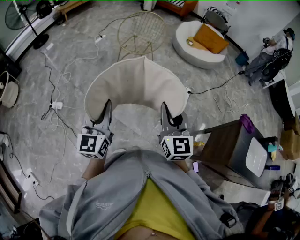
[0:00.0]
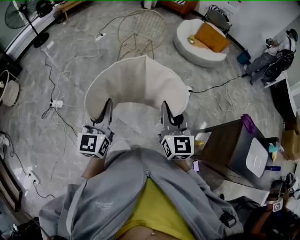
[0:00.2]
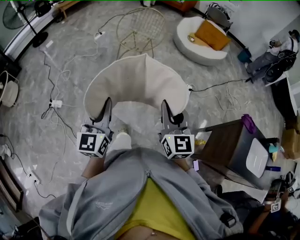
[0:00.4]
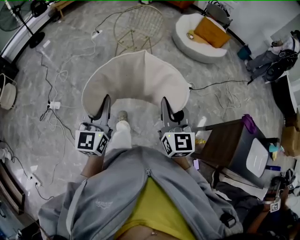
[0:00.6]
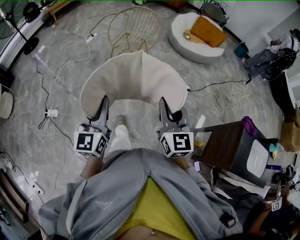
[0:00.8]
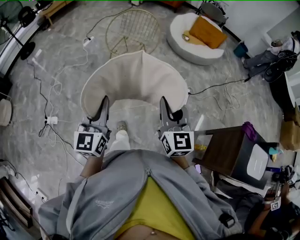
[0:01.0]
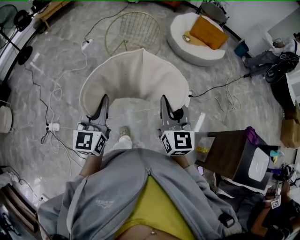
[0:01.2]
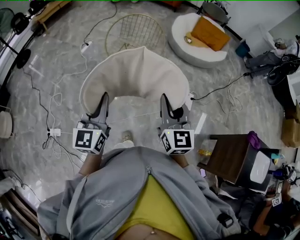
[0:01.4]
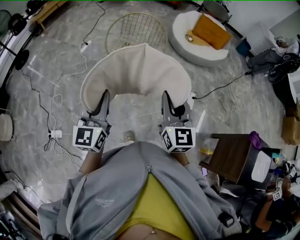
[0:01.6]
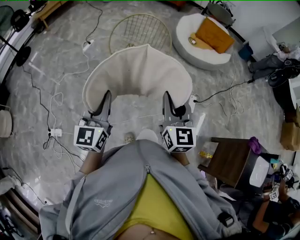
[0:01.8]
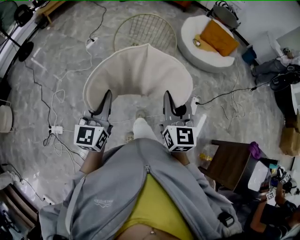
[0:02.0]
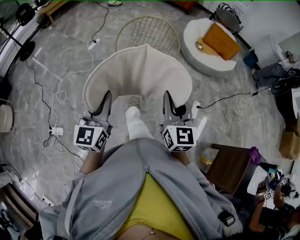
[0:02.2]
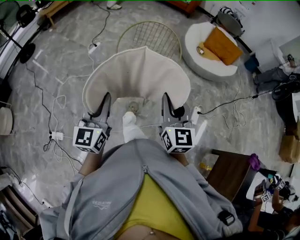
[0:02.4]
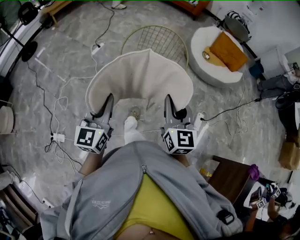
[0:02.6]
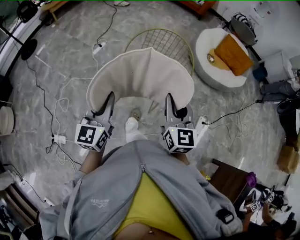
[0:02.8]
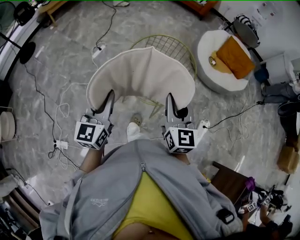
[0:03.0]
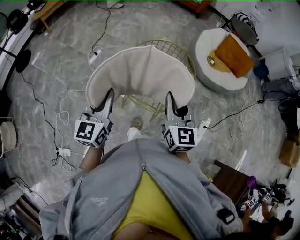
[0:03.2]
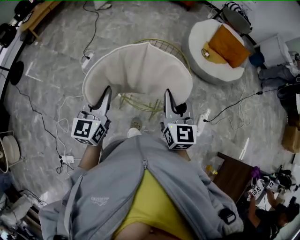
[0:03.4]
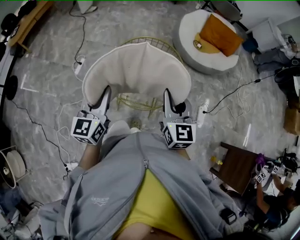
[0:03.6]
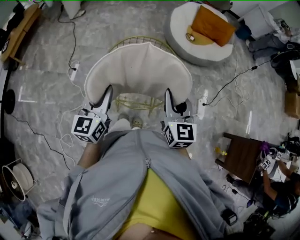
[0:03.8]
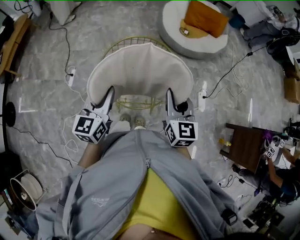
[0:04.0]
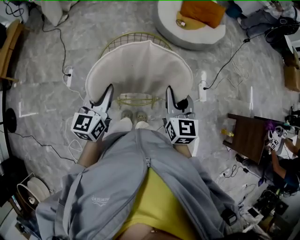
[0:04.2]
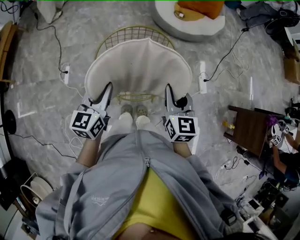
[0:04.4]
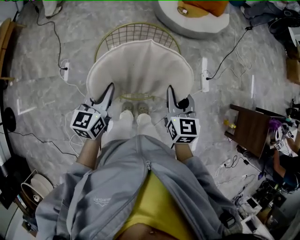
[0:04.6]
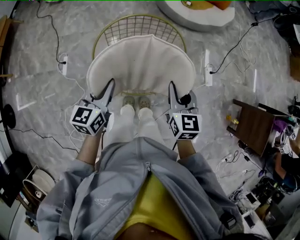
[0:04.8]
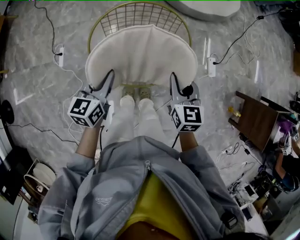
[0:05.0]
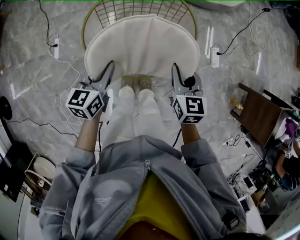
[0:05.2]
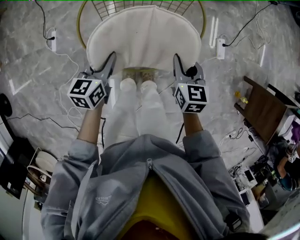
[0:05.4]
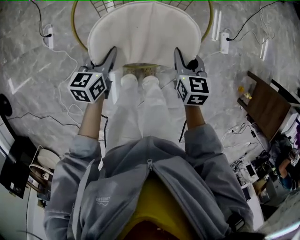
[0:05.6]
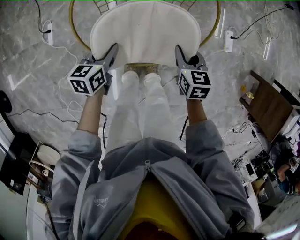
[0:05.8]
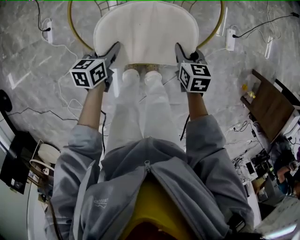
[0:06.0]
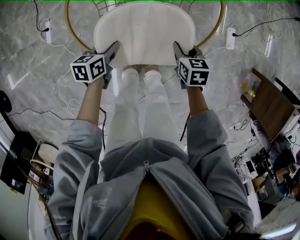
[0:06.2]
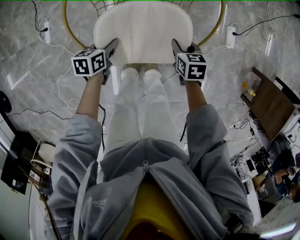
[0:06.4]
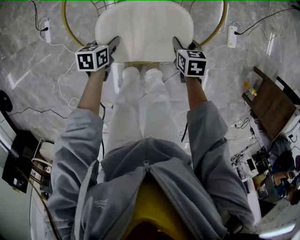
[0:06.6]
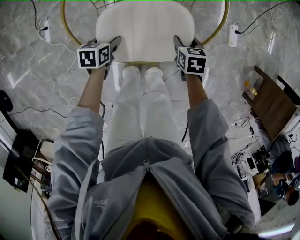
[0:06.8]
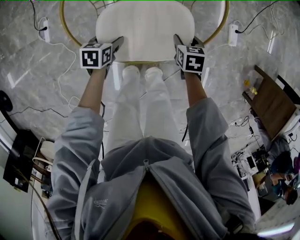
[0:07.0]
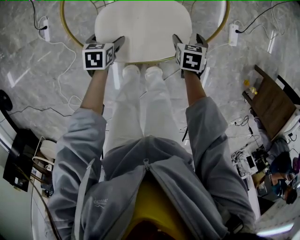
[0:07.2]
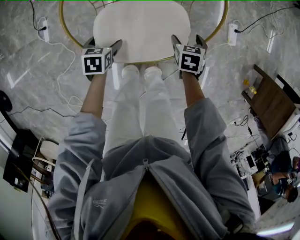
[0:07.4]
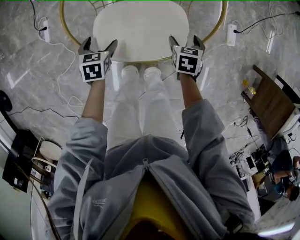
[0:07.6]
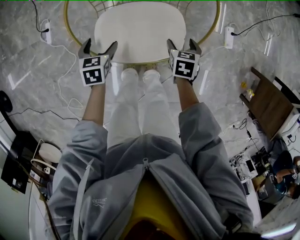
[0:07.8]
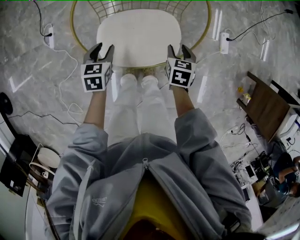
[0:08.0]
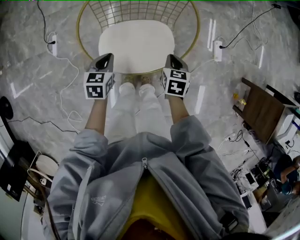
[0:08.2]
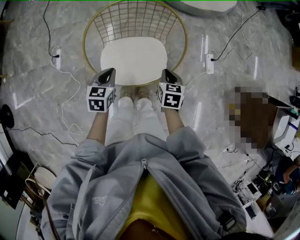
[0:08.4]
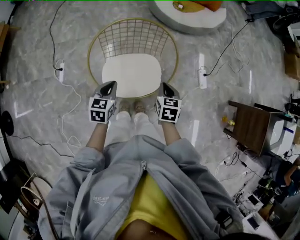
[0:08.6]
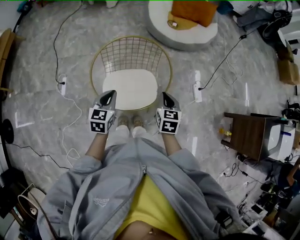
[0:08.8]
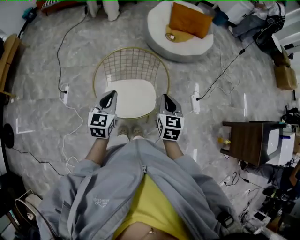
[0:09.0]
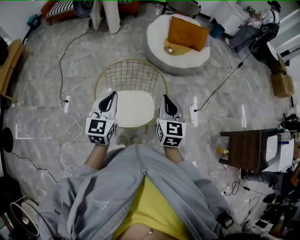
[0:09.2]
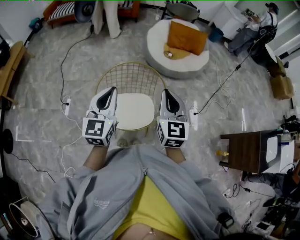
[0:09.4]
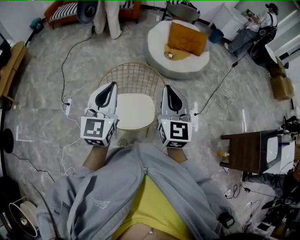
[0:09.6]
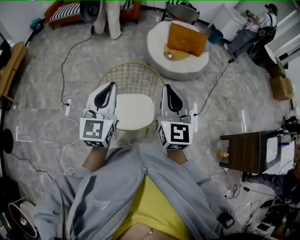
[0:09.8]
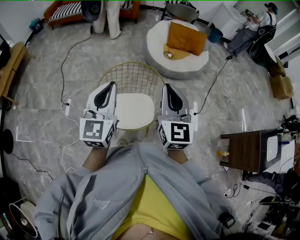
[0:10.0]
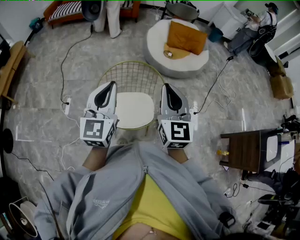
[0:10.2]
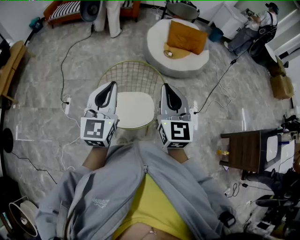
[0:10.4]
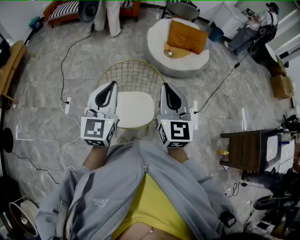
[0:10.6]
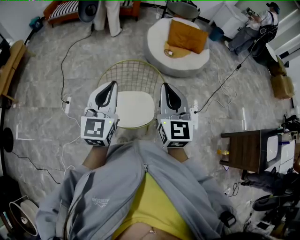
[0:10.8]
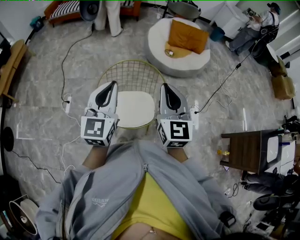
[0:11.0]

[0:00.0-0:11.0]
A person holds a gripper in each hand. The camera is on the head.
0:00.0 to 0:01.6: The two grippers travel together, forward, approximately 40 cm.
0:01.6 to 0:03.2: The two grippers travel together, forward, about 40 cm.
0:03.2 to 0:04.8: The left gripper changes place by roughly 25 cm, and turns by roughly 40 degrees; the right gripper goes about 15 cm downward, and changes its angle by about 30 degrees.
0:04.8 to 0:06.2: Both grippers move downward, some 35 cm. The right gripper changes its angle by approximately 30 degrees. Meanwhile the left gripper changes its angle by roughly 30 degrees.
0:06.2 to 0:07.8: The right gripper opens; the left gripper changes its angle by about 30 degrees, and opens.
0:07.8 to 0:09.4: Both grippers move upward, approximately 50 cm. The left gripper tips its fingers upward by roughly 50 degrees, and closes its fingers; the right gripper tips its fingers upward by some 60 degrees, and closes.
0:09.4 to 0:11.0: The grippers move only a little.

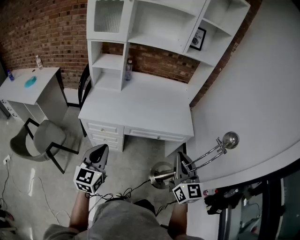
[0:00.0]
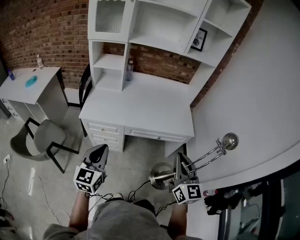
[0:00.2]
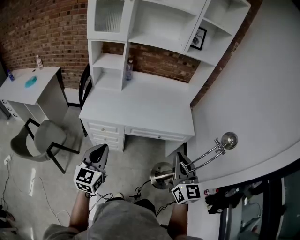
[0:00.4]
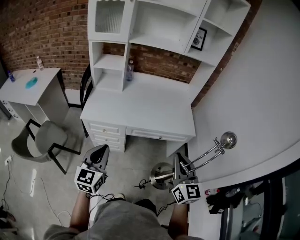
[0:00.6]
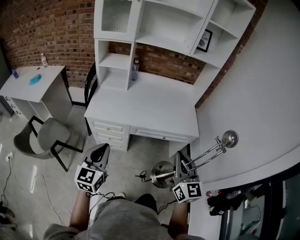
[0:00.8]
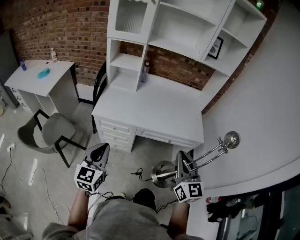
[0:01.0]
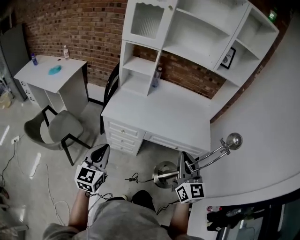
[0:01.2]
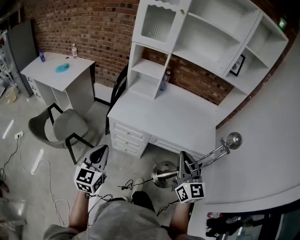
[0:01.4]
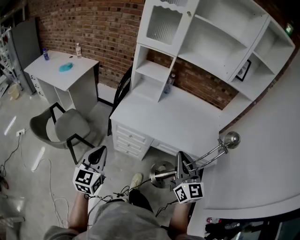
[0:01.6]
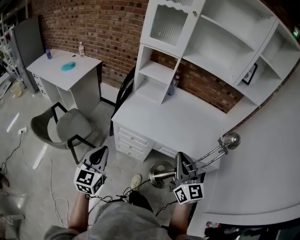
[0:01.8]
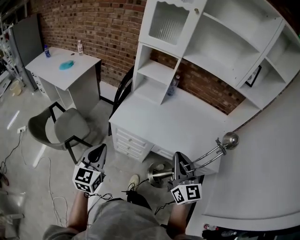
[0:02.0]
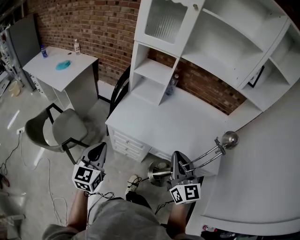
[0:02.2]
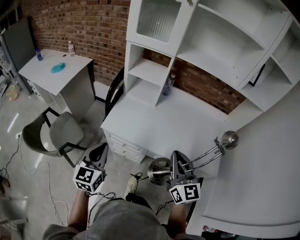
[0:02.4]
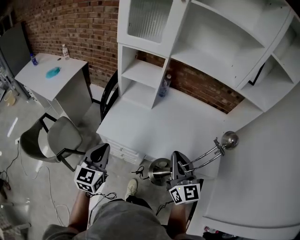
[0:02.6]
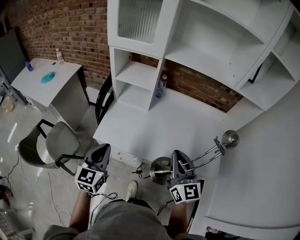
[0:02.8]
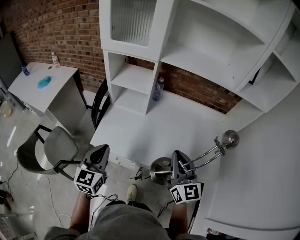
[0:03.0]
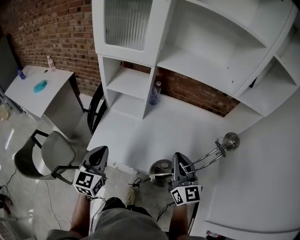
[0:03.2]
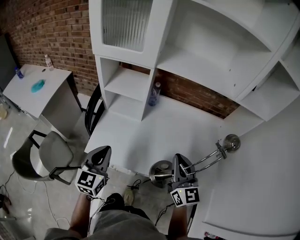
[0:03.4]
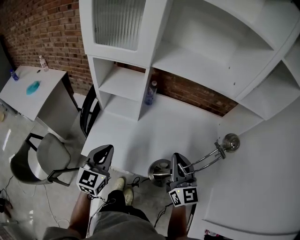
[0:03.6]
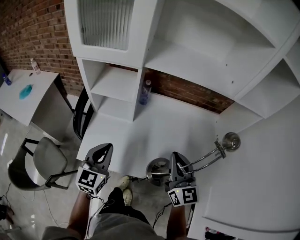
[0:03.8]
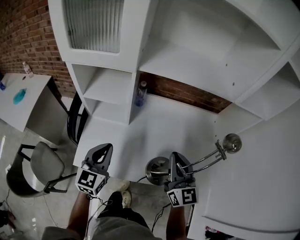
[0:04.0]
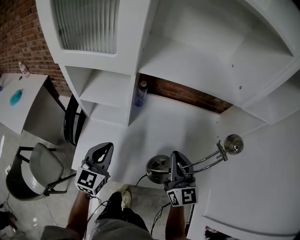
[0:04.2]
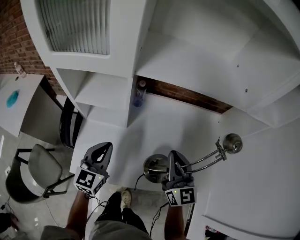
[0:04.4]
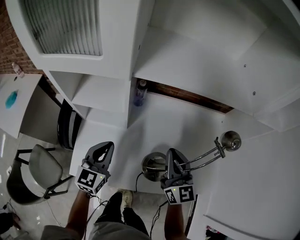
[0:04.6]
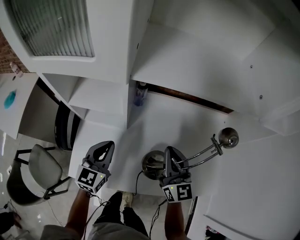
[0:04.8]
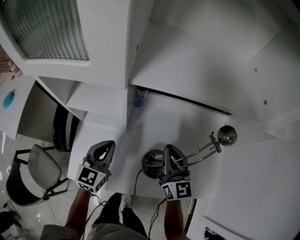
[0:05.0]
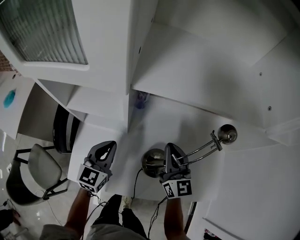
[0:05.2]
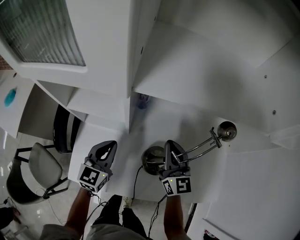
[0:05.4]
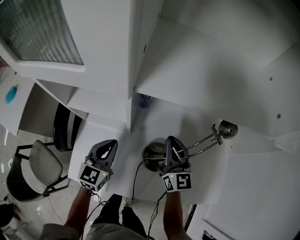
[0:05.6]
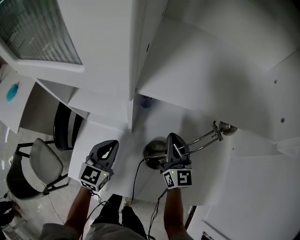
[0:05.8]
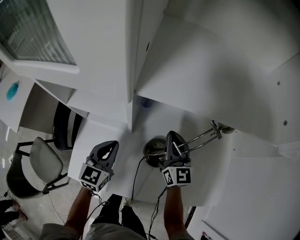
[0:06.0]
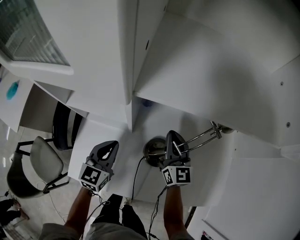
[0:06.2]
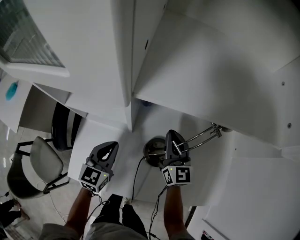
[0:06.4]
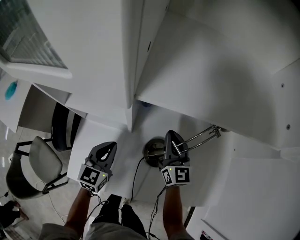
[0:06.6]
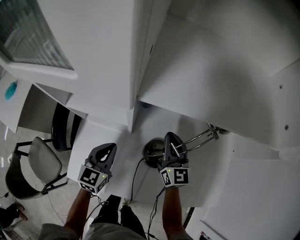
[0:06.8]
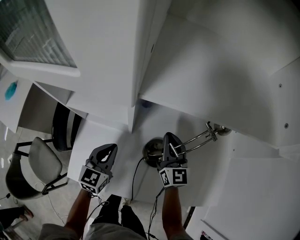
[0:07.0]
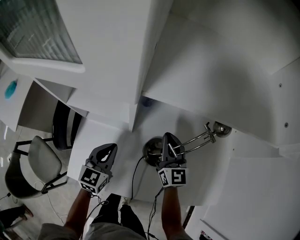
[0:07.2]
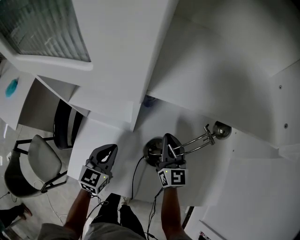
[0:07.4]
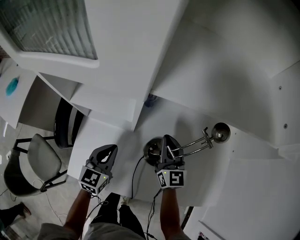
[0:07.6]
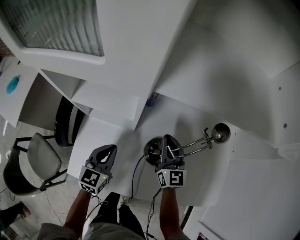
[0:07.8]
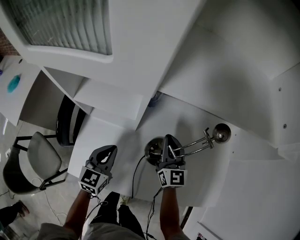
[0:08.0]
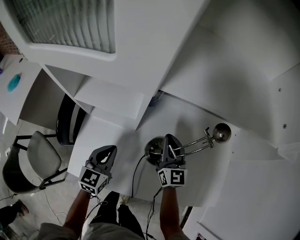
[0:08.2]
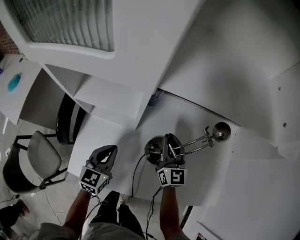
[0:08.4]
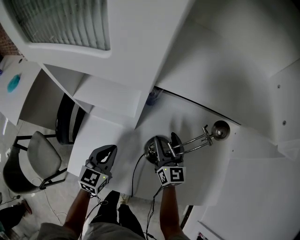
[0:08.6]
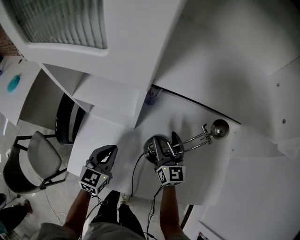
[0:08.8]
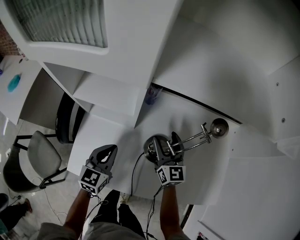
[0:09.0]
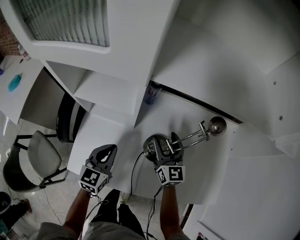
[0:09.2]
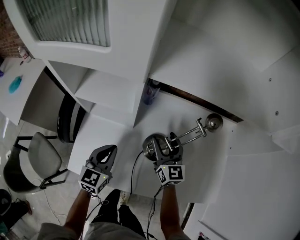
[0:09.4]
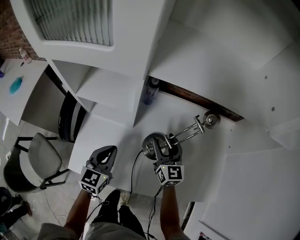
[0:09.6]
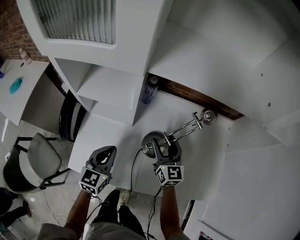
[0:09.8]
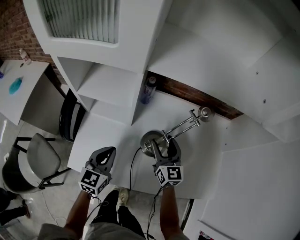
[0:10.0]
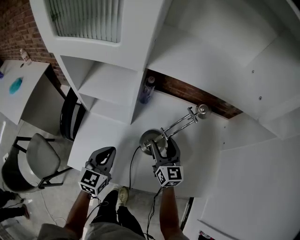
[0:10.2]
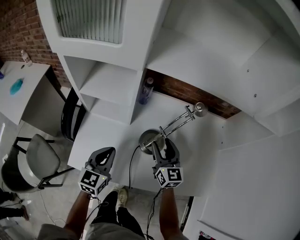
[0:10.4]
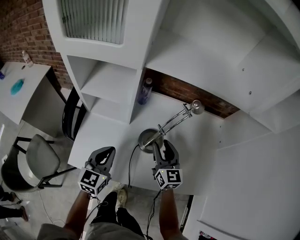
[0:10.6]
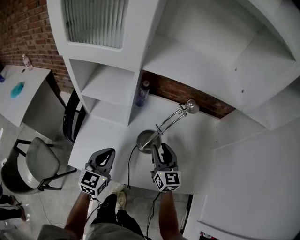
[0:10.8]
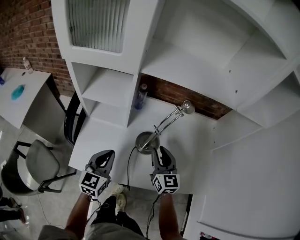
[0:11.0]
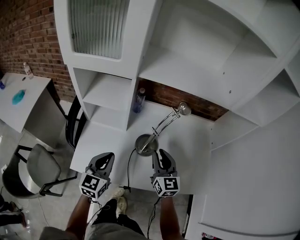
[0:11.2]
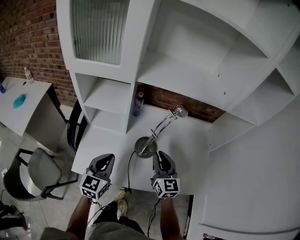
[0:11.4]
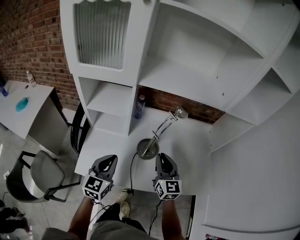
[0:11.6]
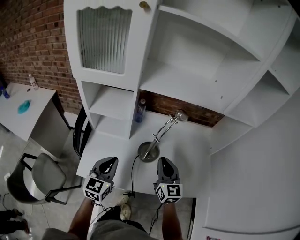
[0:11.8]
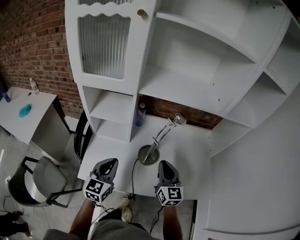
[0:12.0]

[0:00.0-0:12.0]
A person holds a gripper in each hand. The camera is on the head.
0:00.0 to 0:01.6: The right gripper travels to the left and forward by about 20 cm; the left gripper moves to the left, approximately 15 cm.
0:01.6 to 0:03.0: The right gripper is displaced forward by about 25 cm; the left gripper shifts roughly 30 cm forward and to the right.
0:03.0 to 0:04.4: The grippers both shift forward by roughly 20 cm.
0:04.4 to 0:06.0: The right gripper moves forward and downward, roughly 20 cm. Meanwhile the left gripper heads downward and forward, covering approximately 10 cm.
0:06.0 to 0:07.6: The grippers move only a little.
0:07.6 to 0:09.0: The right gripper opens its fingers.
0:09.0 to 0:10.4: The grippers both shift backward by some 5 cm.
0:10.4 to 0:12.0: The right gripper goes about 15 cm backward and upward, and closes its fingers. The left gripper goes roughly 10 cm upward and backward.

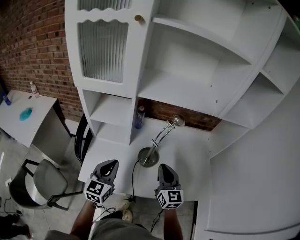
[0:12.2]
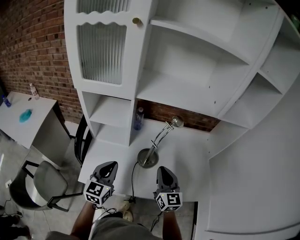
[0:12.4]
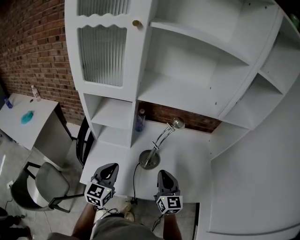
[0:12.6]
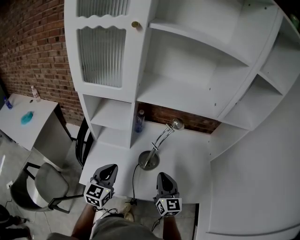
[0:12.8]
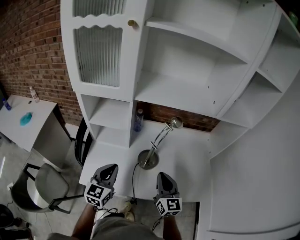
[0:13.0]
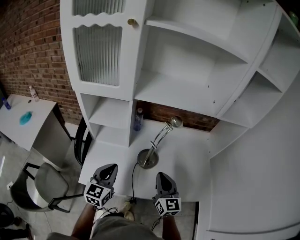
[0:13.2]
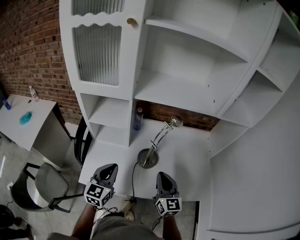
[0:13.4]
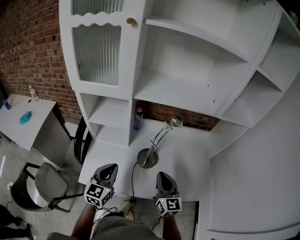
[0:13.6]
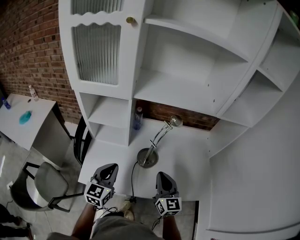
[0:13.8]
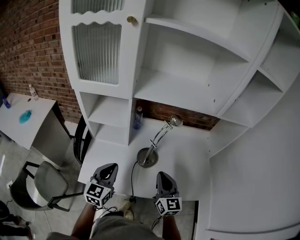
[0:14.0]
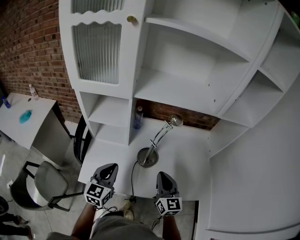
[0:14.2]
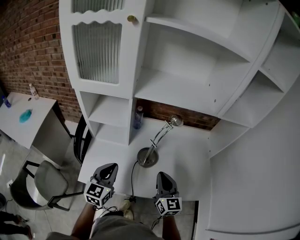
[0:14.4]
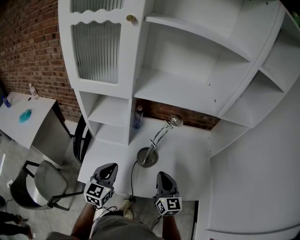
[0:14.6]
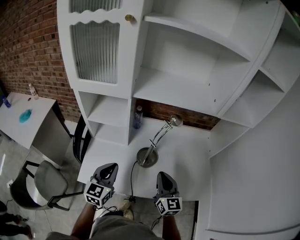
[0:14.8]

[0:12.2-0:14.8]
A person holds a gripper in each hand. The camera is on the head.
0:12.2 to 0:13.4: The grippers stay close to where they were, moving slightly.
0:13.4 to 0:14.8: Both grippers stay about where they are.
